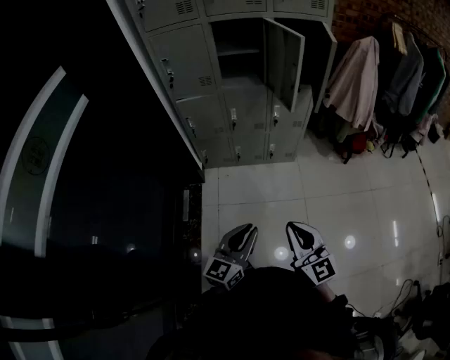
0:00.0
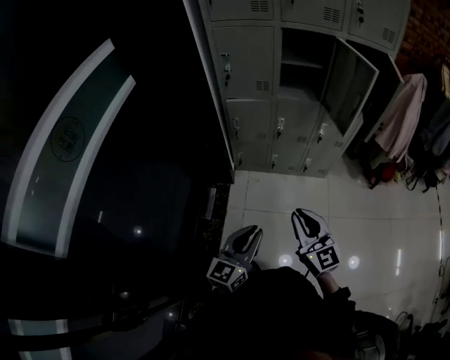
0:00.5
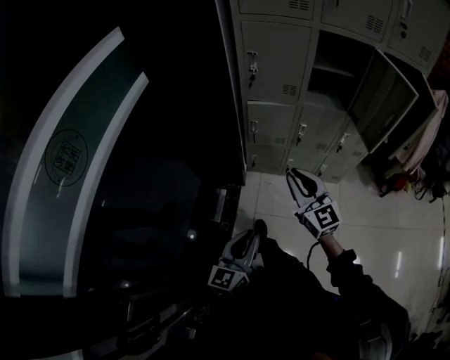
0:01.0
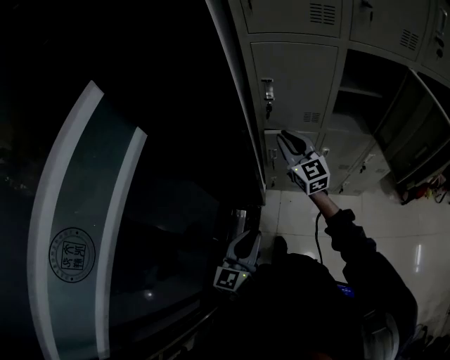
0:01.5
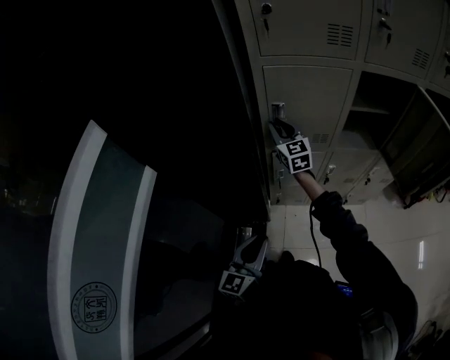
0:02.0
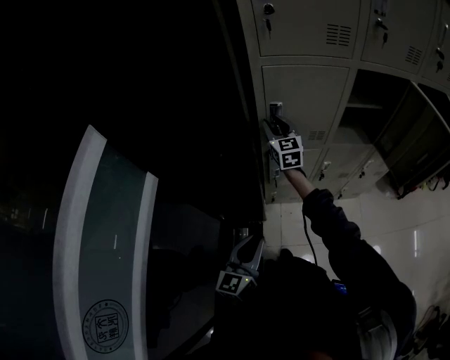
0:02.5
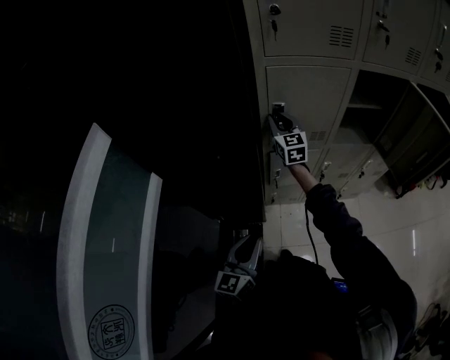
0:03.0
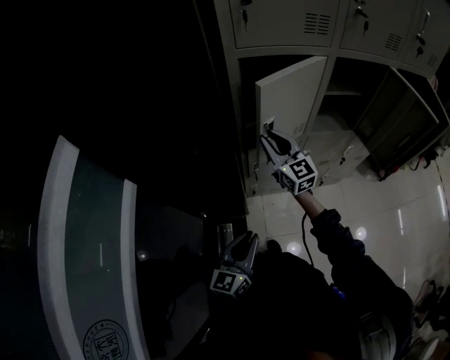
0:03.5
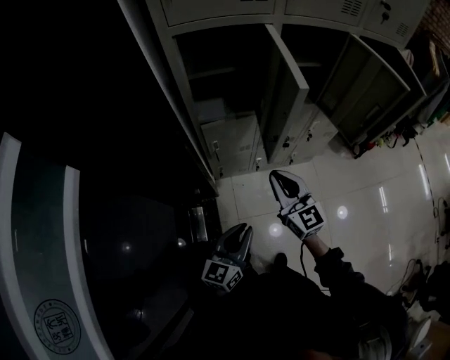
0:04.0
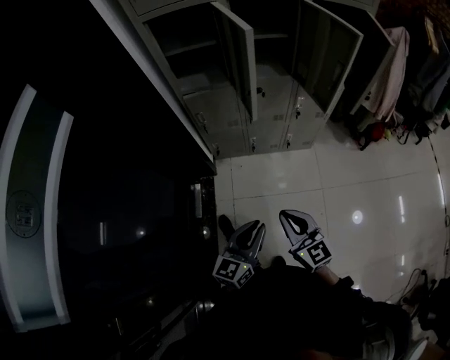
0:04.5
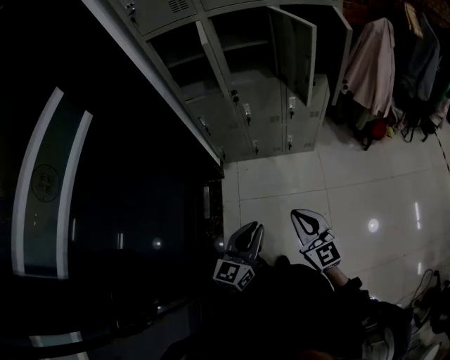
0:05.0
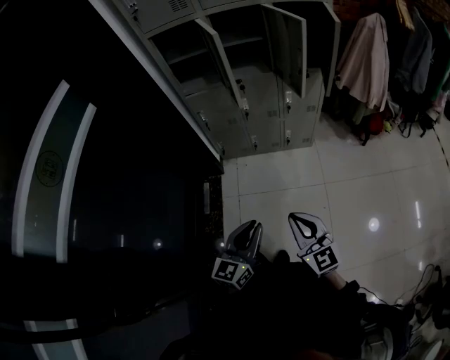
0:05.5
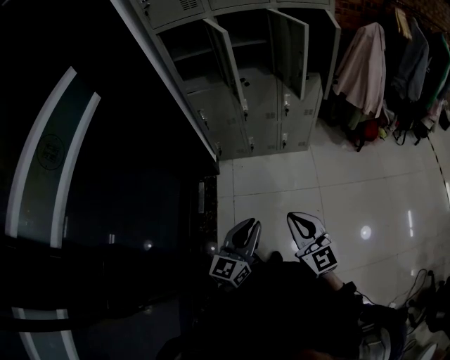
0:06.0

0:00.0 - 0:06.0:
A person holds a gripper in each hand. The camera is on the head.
0:00.0 - 0:02.0: Both grippers are carried forward and to the left, some 70 cm.
0:02.0 - 0:04.0: The left gripper heads to the right and backward, covering approximately 10 cm. Meanwhile the right gripper travels backward and to the right by about 35 cm.
0:04.0 - 0:06.0: Both grippers are carried backward and to the right, approximately 50 cm.

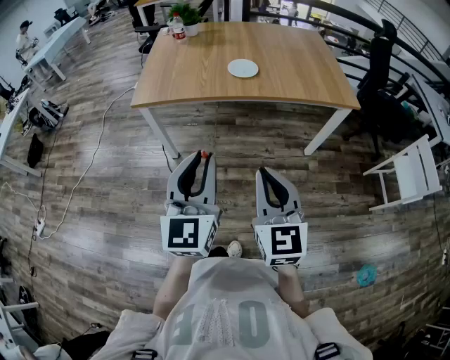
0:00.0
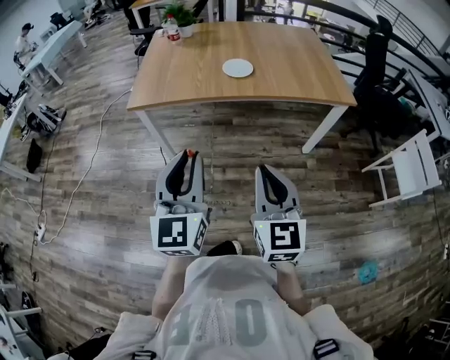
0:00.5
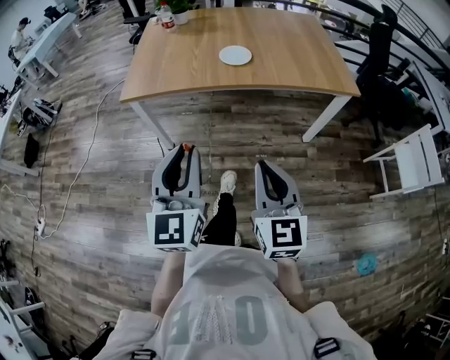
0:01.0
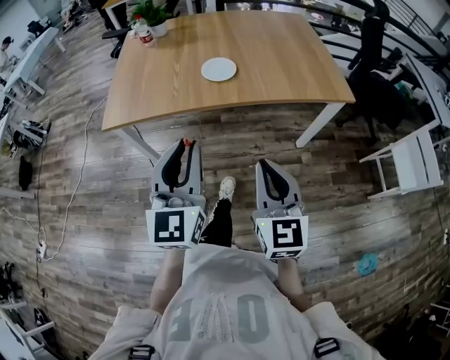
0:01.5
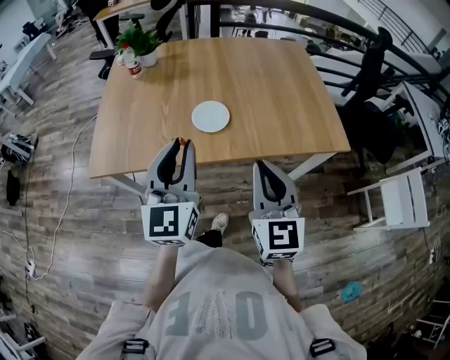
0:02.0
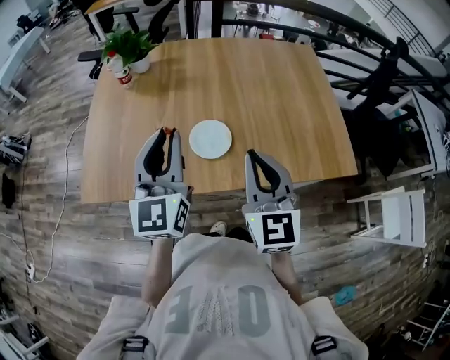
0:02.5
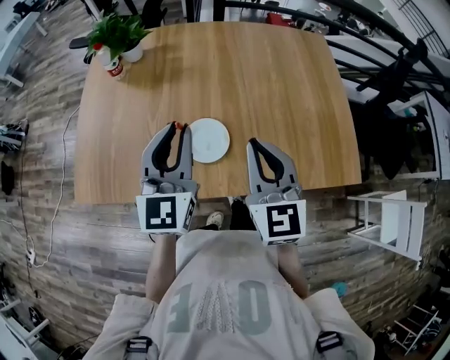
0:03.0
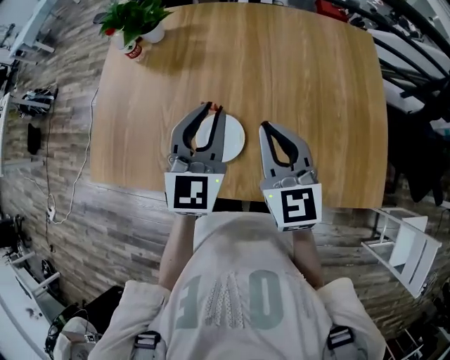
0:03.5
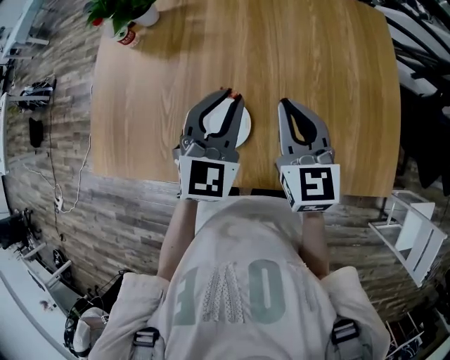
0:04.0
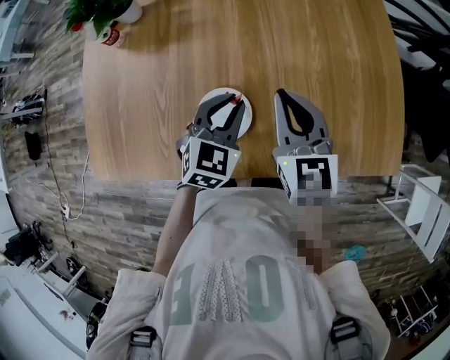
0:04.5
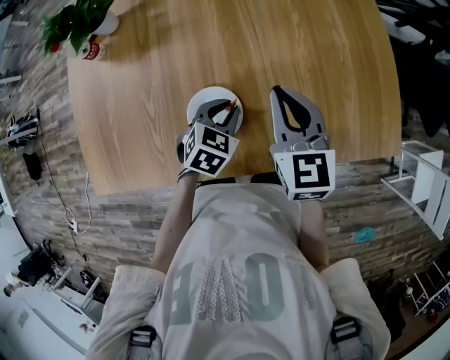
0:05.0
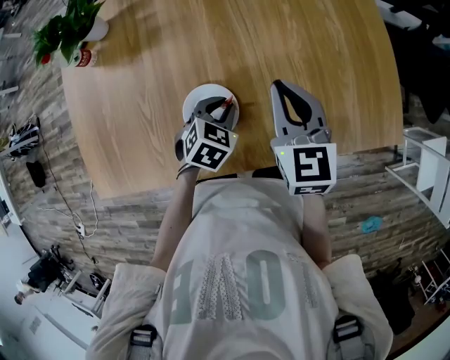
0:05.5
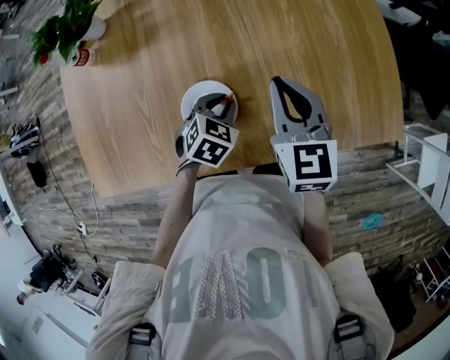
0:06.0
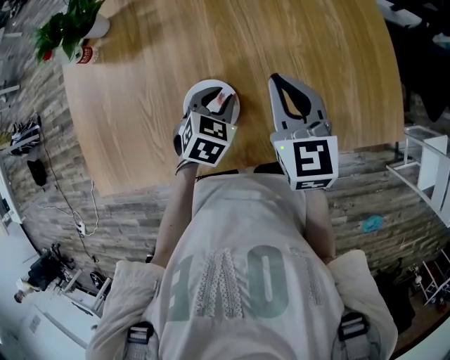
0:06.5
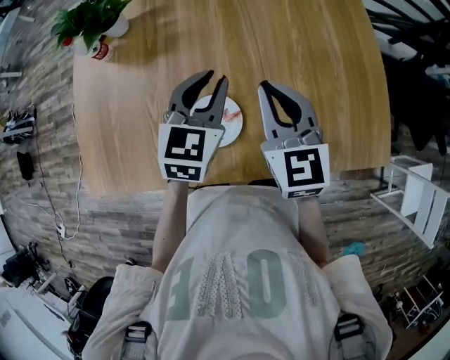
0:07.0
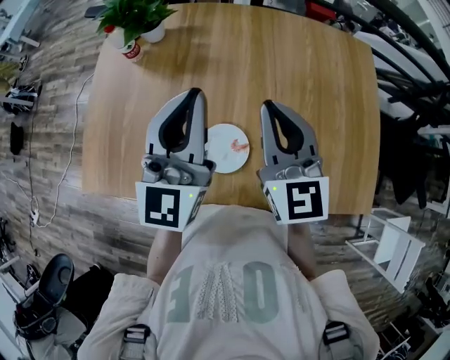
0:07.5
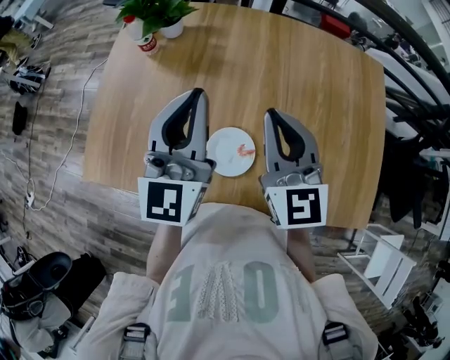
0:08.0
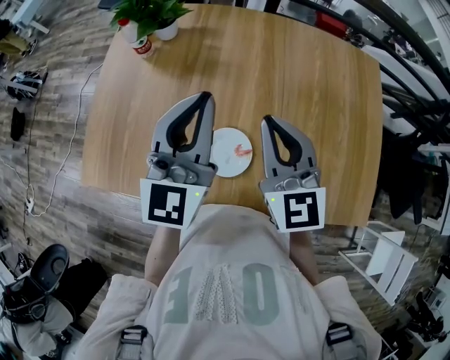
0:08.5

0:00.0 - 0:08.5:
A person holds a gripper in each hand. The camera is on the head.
0:00.0 - 0:02.0: The grippers both shift forward by some 35 cm.
0:02.0 - 0:04.0: The right gripper travels forward by approximately 35 cm. Meanwhile the left gripper heads forward and to the right, covering roughly 35 cm, and turns by some 30 degrees.
0:04.0 - 0:06.5: The left gripper moves downward, some 20 cm, and tilts its fingers roughly 40 degrees downward.
0:06.5 - 0:08.5: The right gripper is displaced to the left and upward by approximately 15 cm, and swivels some 30 degrees, while the left gripper travels upward by approximately 30 cm, and tips its fingers upward by some 60 degrees.

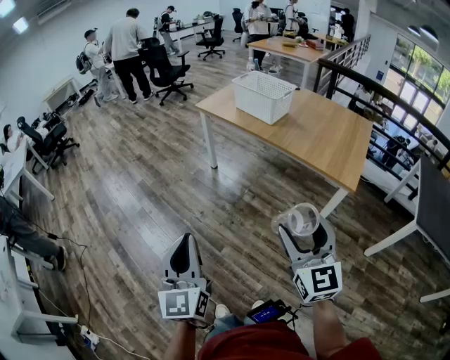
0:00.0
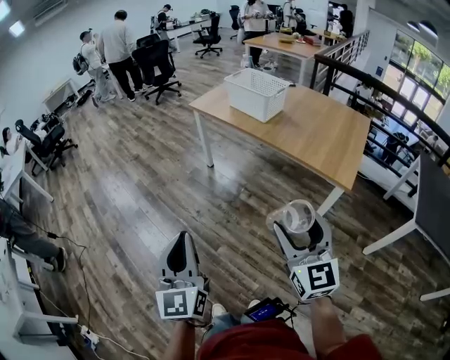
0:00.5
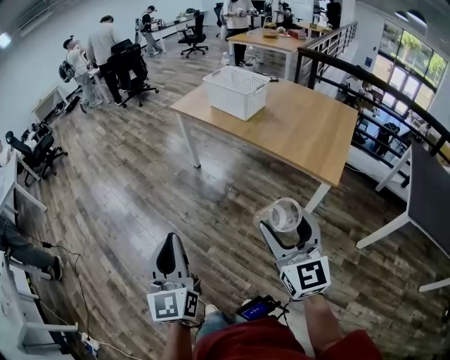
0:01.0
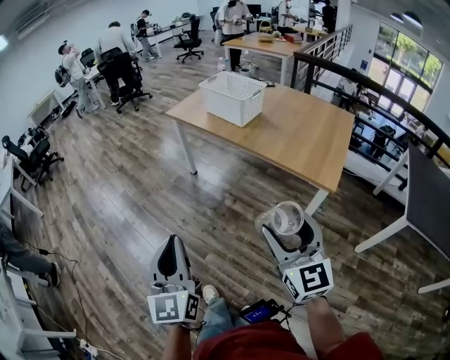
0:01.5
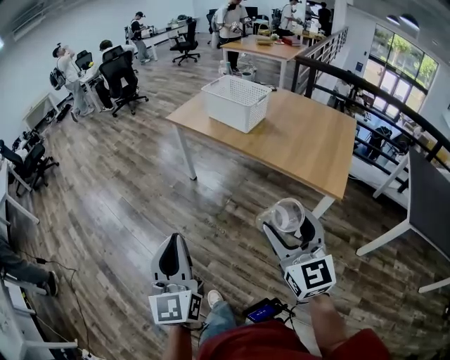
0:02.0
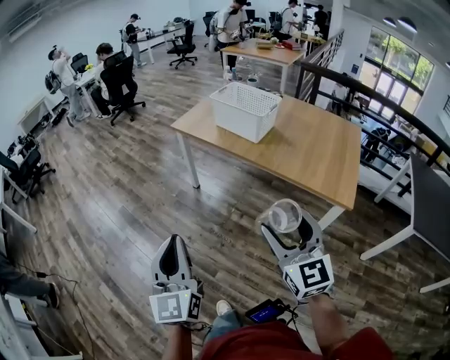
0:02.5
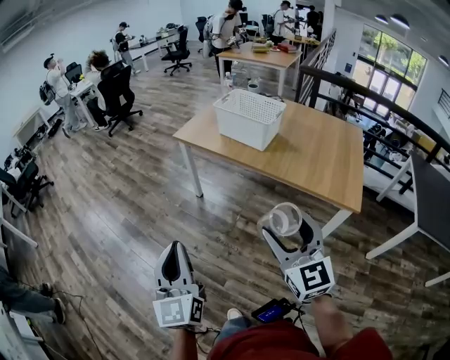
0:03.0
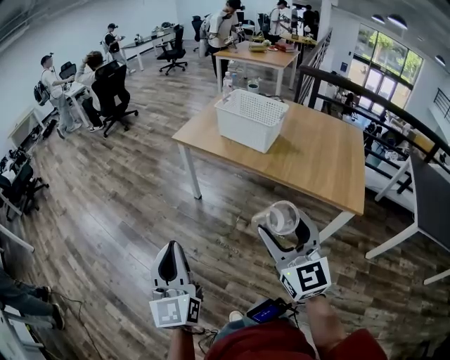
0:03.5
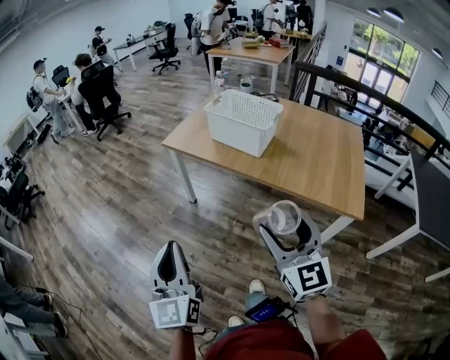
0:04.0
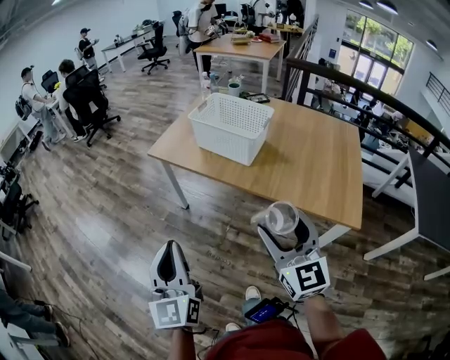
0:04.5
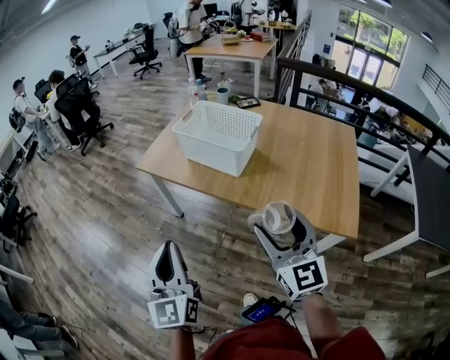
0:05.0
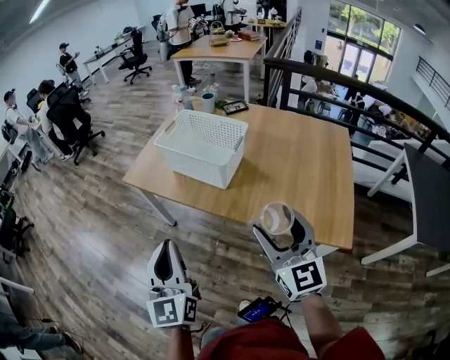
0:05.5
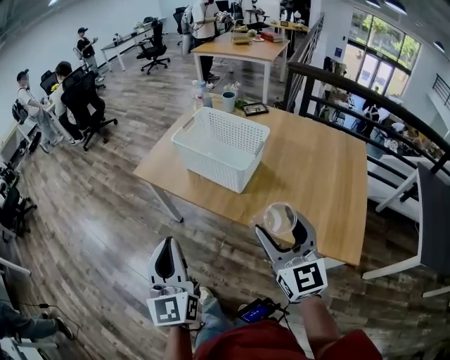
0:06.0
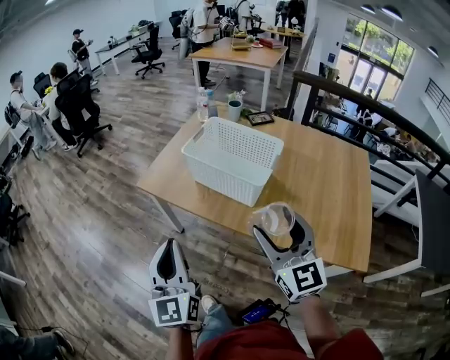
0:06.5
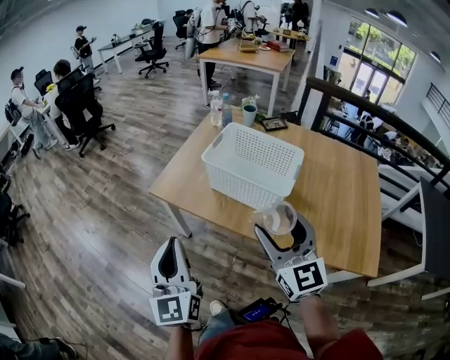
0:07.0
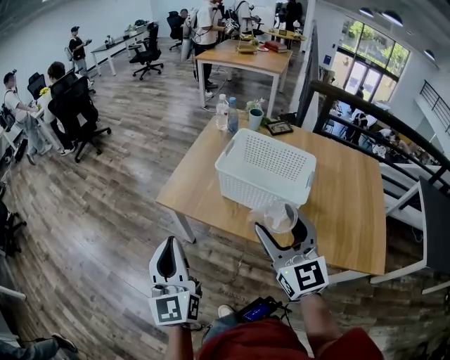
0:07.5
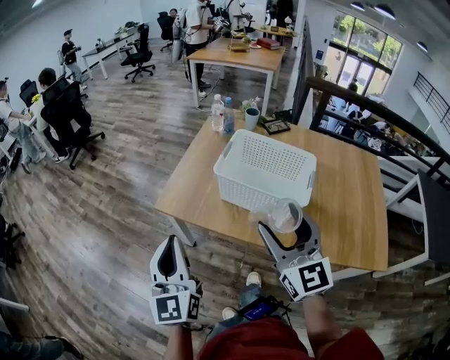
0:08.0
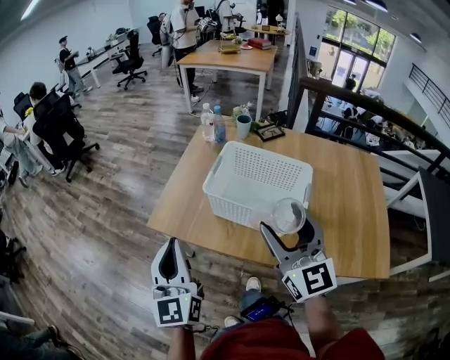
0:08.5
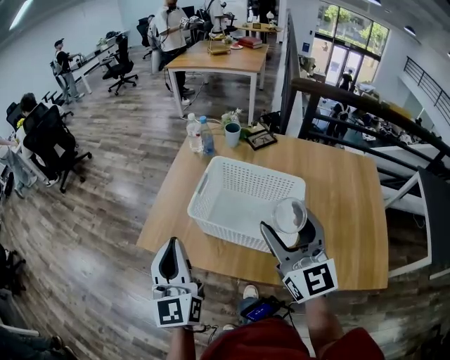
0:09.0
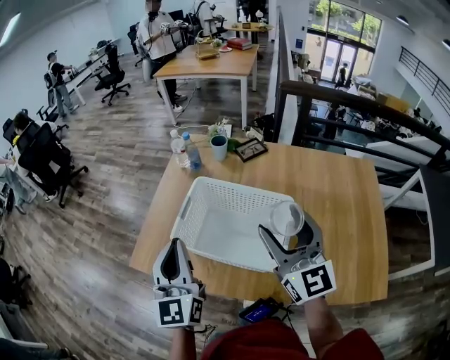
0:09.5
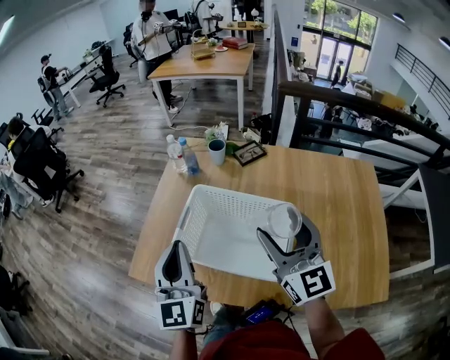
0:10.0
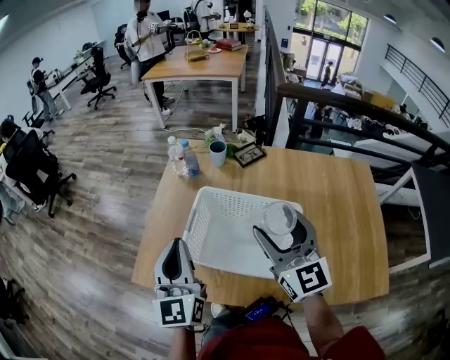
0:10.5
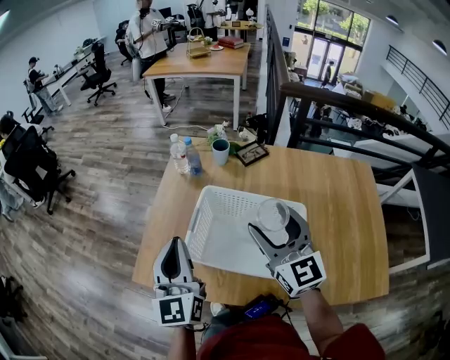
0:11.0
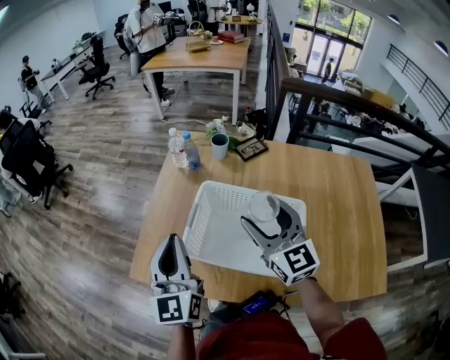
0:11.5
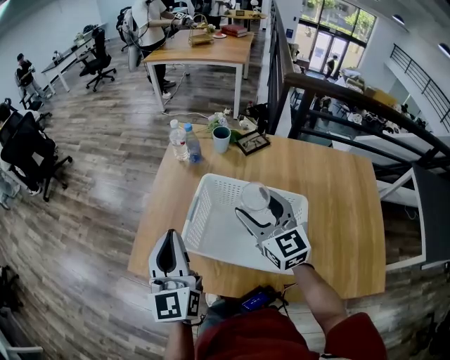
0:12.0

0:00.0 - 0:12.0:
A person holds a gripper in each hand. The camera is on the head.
0:00.0 - 0:02.0: The left gripper goes approximately 10 cm forward and to the right. The right gripper moves forward, some 10 cm.
0:02.0 - 0:04.0: The grippers both shift forward and to the left by about 20 cm.
0:04.0 - 0:06.0: The grippers both shift forward and to the right by some 25 cm.
0:06.0 - 0:08.0: The two grippers go roughly 25 cm forward and to the left.
0:08.0 - 0:10.0: The two grippers go some 25 cm forward and to the right.
0:10.0 - 0:12.0: The left gripper travels to the left by about 5 cm. The right gripper heads forward, downward and to the left, covering some 15 cm.
